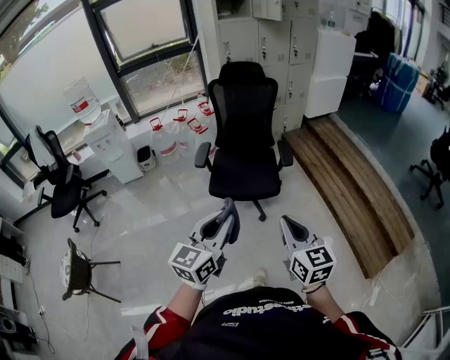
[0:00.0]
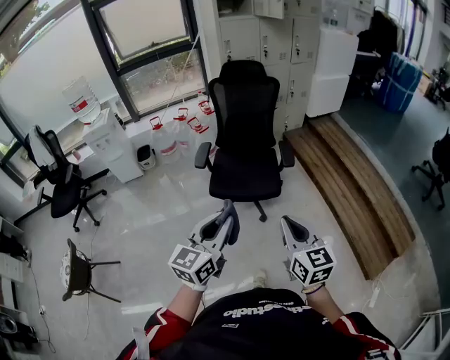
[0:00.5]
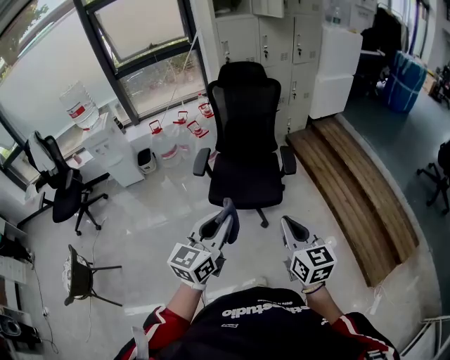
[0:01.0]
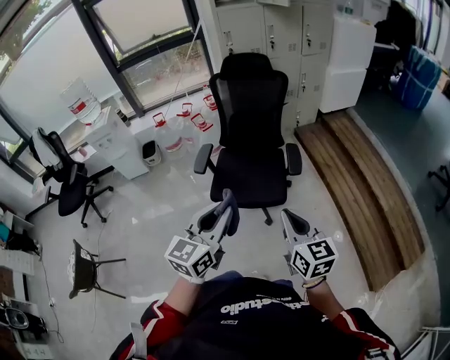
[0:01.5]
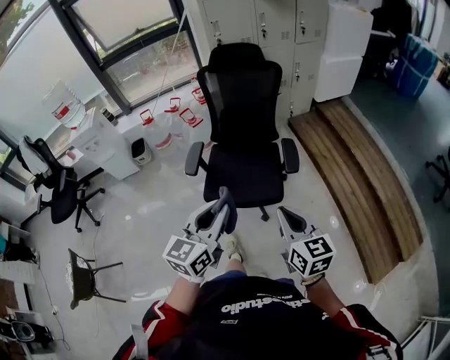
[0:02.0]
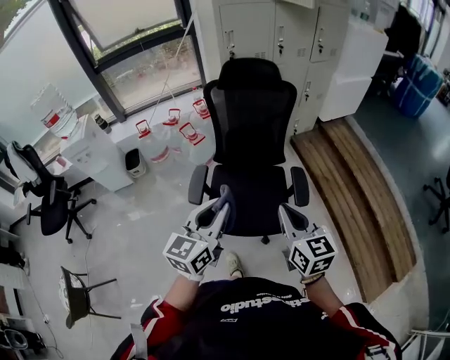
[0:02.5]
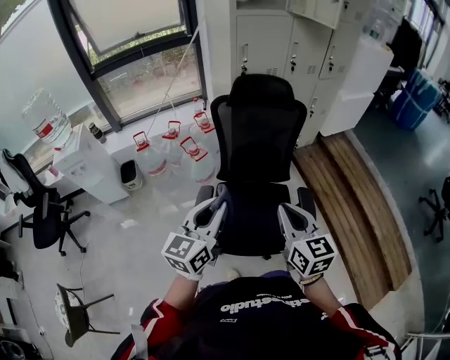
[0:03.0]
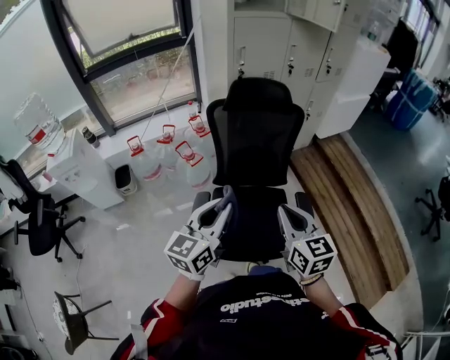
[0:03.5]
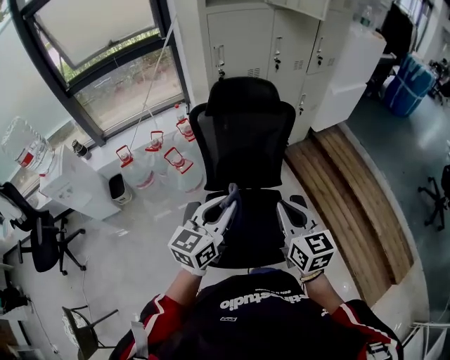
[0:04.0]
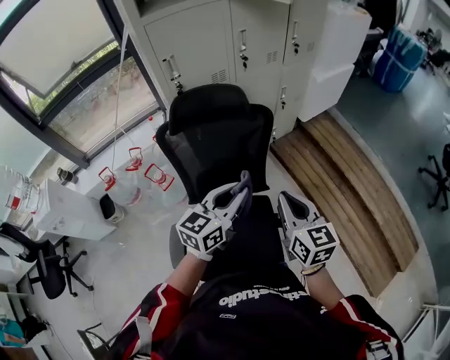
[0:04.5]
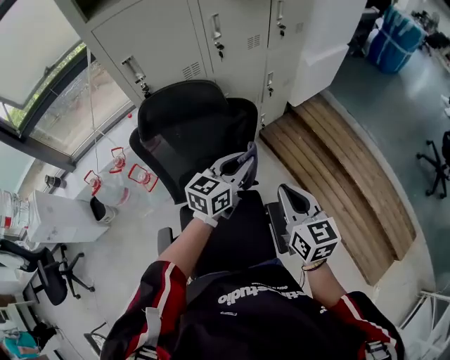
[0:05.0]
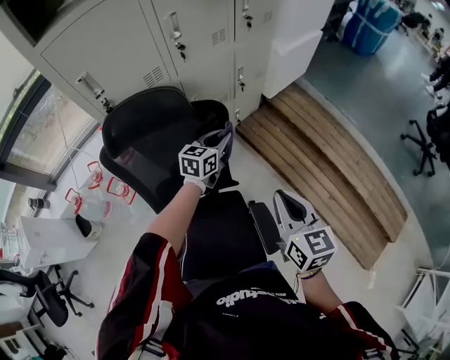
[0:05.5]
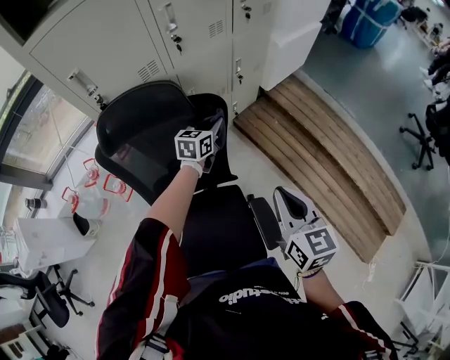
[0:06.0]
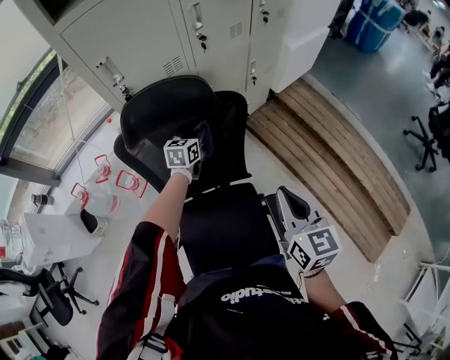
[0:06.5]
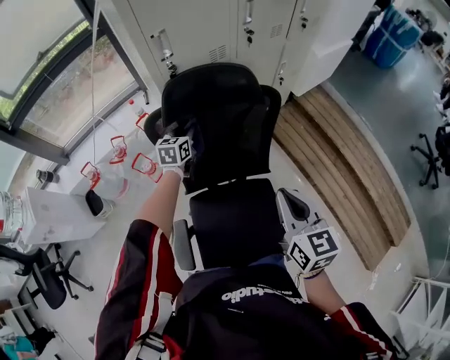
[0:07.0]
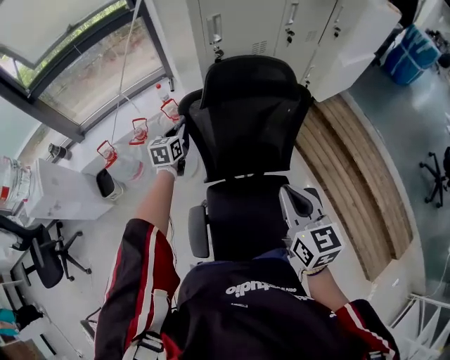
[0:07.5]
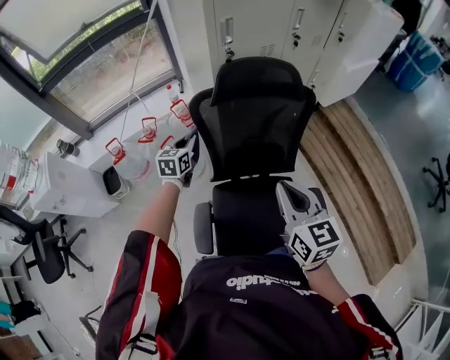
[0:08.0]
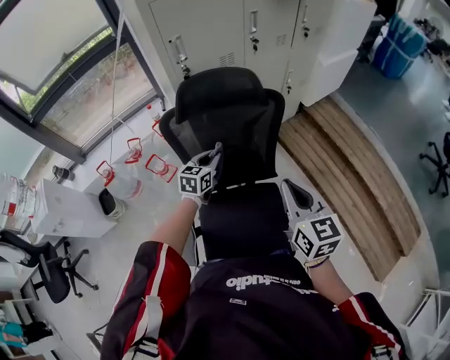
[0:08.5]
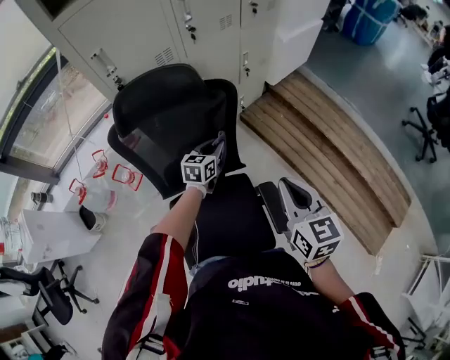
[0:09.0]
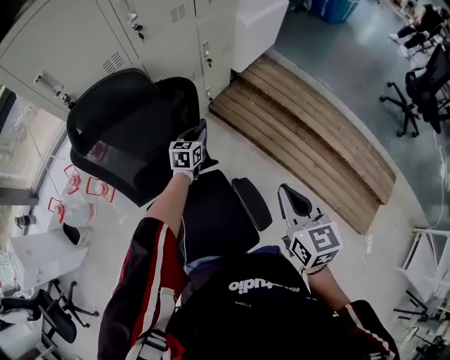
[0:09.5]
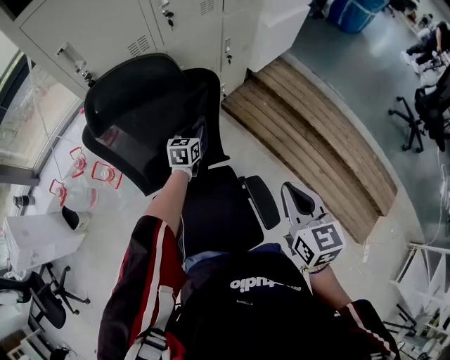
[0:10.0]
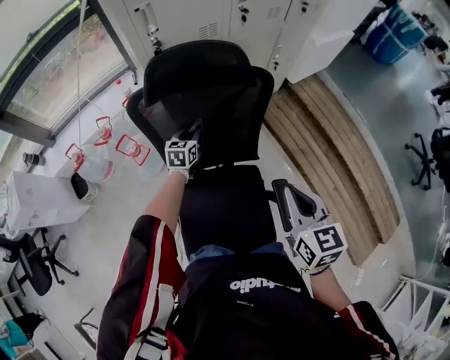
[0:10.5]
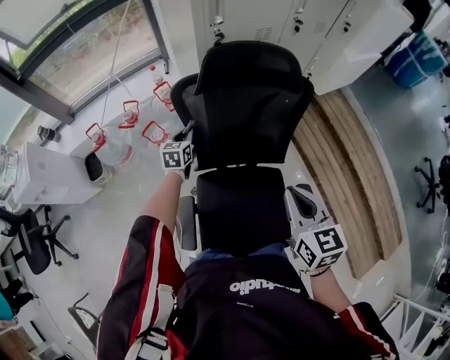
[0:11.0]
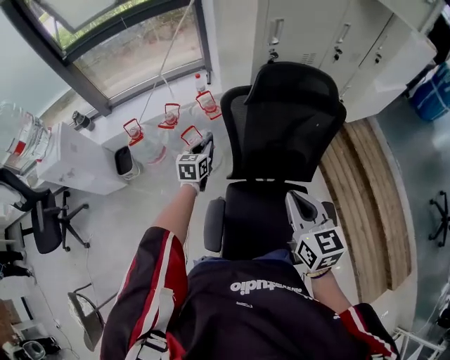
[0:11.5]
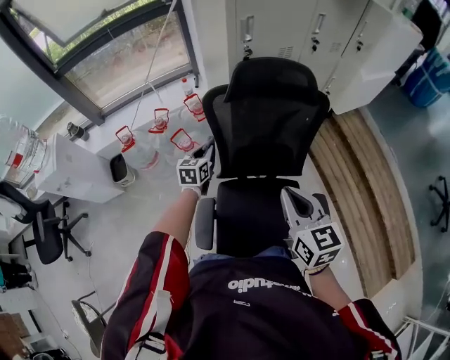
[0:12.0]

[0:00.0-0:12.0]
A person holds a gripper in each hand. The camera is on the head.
0.0 to 2.0 s: The two grippers go some 25 cm forward.
2.0 to 4.0 s: The two grippers travel together, forward, some 50 cm.
4.0 to 6.0 s: The right gripper travels forward and to the right by approximately 35 cm; the left gripper goes roughly 60 cm forward, and rotates some 20 degrees.
6.0 to 8.0 s: The left gripper heads to the left and backward, covering about 50 cm, and rotates about 20 degrees; the right gripper goes some 30 cm to the left.
8.0 to 10.0 s: The left gripper travels to the right and forward by roughly 40 cm. Meanwhile the right gripper is displaced to the right by roughly 30 cm, and turns by approximately 20 degrees.
10.0 to 12.0 s: The left gripper ends up some 40 cm from where it was, and rotates about 20 degrees. The right gripper changes place by roughly 35 cm, and changes its angle by approximately 20 degrees.

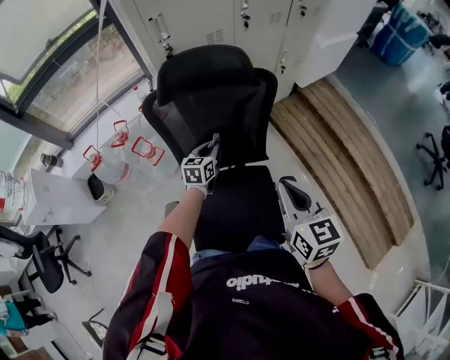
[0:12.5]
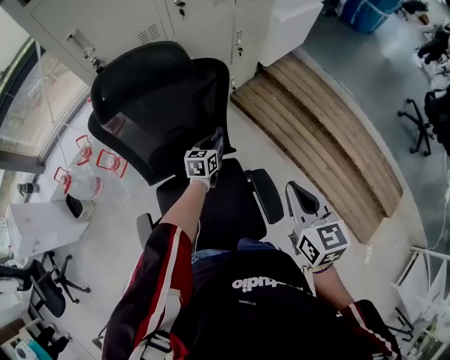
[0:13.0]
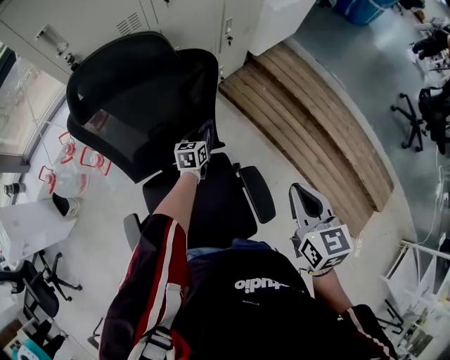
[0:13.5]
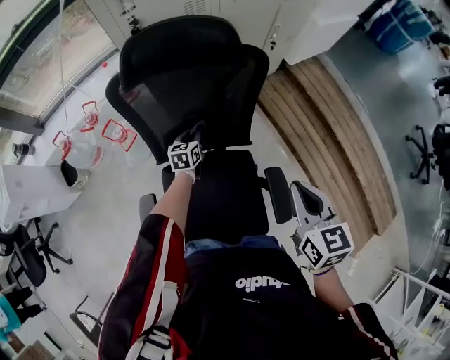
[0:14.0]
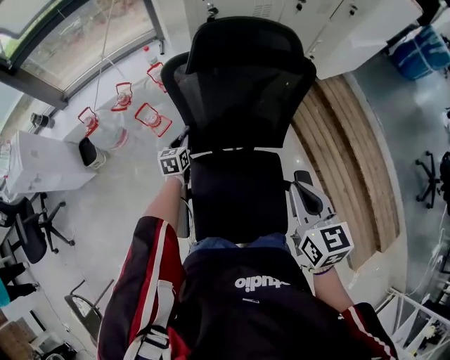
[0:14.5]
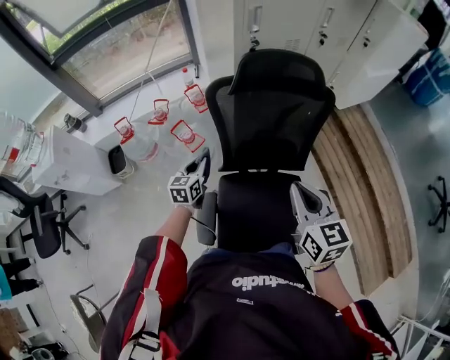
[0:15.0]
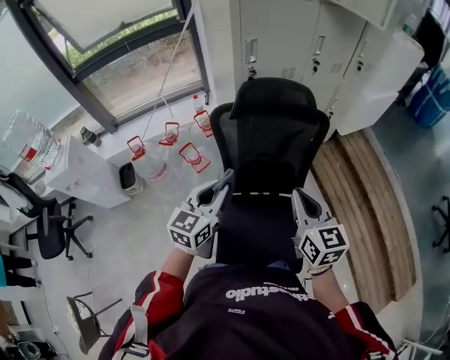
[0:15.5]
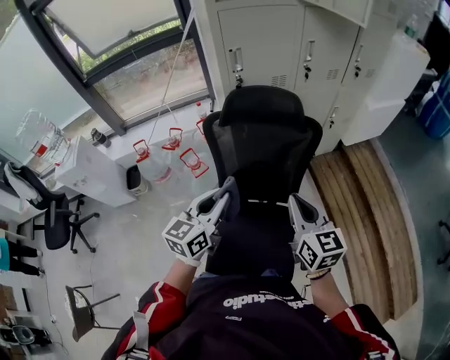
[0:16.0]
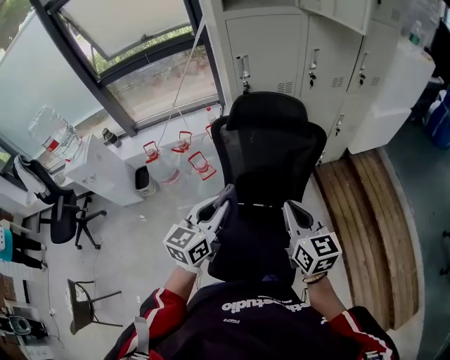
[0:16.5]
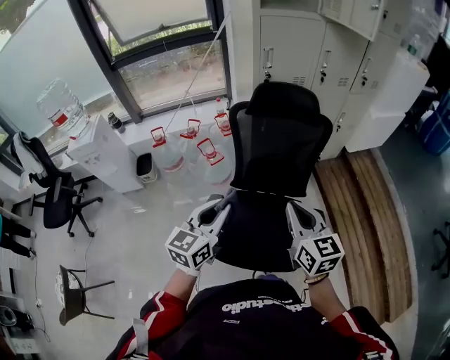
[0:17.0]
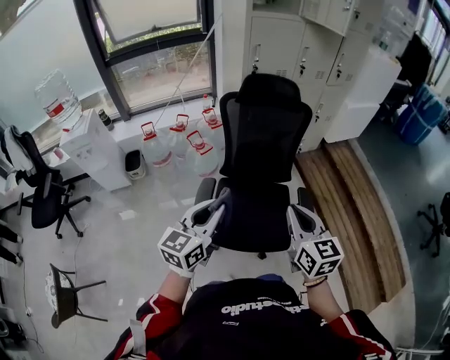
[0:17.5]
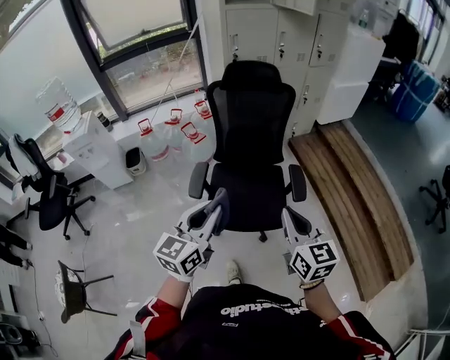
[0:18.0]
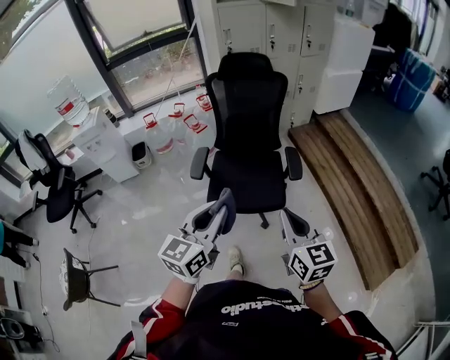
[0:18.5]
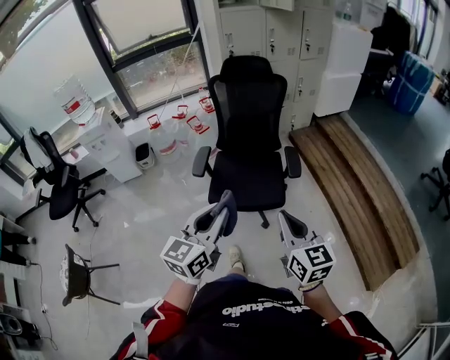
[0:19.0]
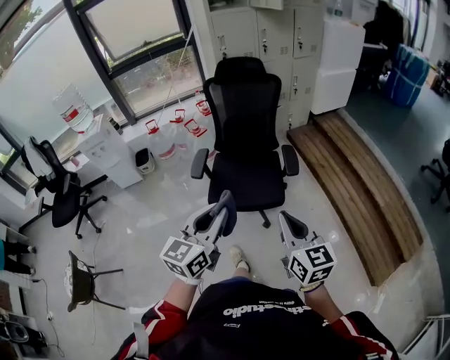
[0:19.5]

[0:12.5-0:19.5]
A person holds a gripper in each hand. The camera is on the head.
12.5 to 14.5 s: The left gripper shifts about 25 cm to the left and downward, while the right gripper reaches approximately 20 cm to the right, then returns.
14.5 to 16.0 s: The left gripper travels upward, backward and to the right by some 50 cm, and rotates approximately 30 degrees, while the right gripper goes some 10 cm upward, and moves about 10 cm to the left and comes back.
16.0 to 17.5 s: The grippers both shift backward by about 35 cm.
17.5 to 19.5 s: The left gripper heads backward and to the right, covering about 40 cm. The right gripper heads backward, covering approximately 35 cm.

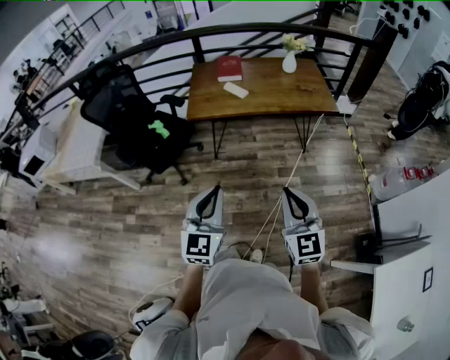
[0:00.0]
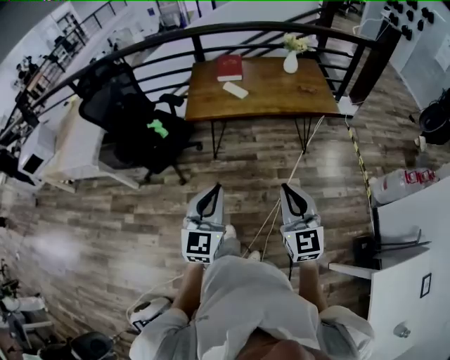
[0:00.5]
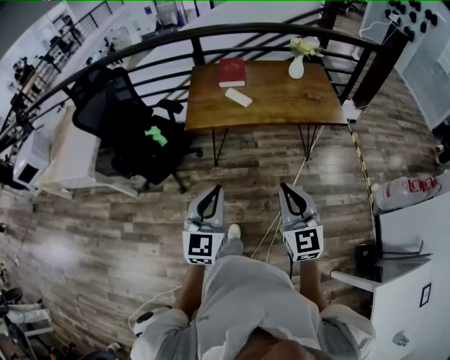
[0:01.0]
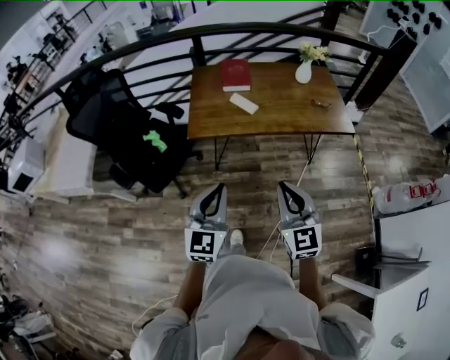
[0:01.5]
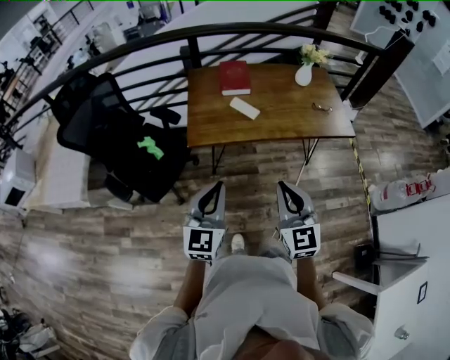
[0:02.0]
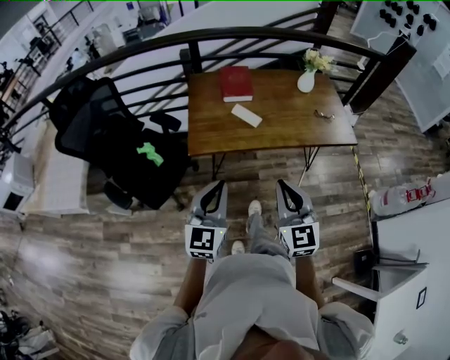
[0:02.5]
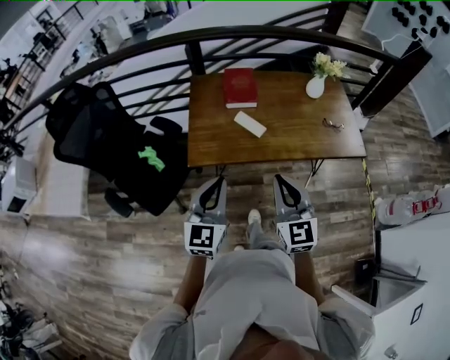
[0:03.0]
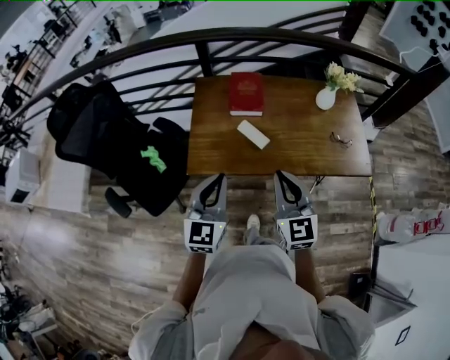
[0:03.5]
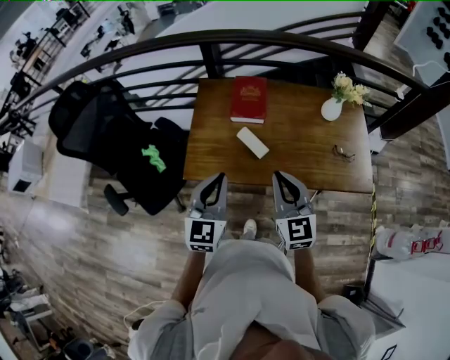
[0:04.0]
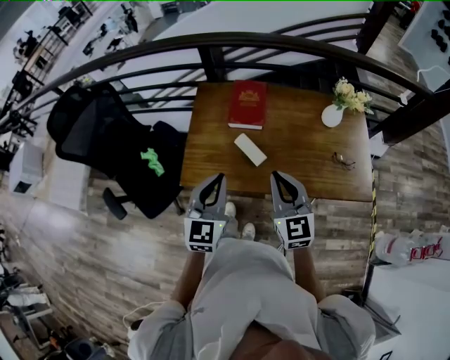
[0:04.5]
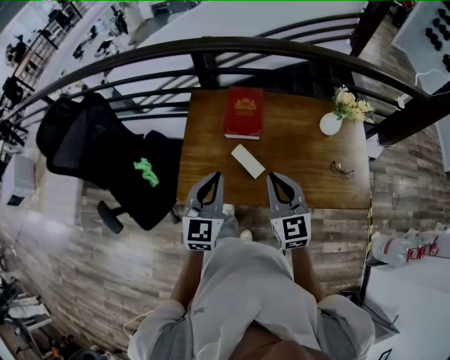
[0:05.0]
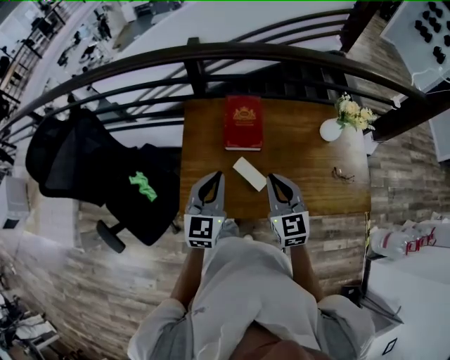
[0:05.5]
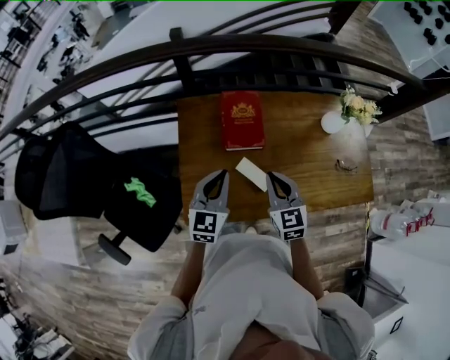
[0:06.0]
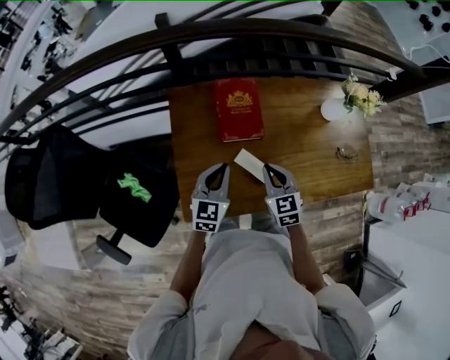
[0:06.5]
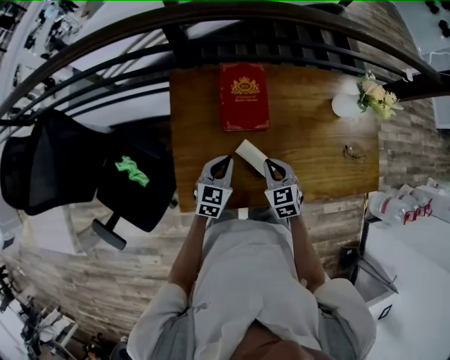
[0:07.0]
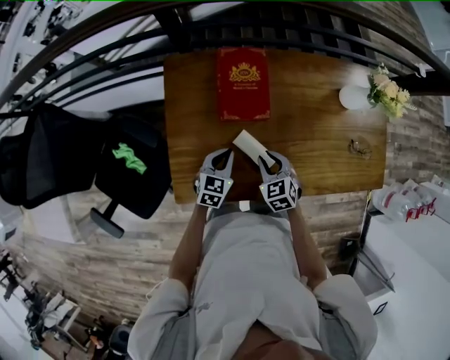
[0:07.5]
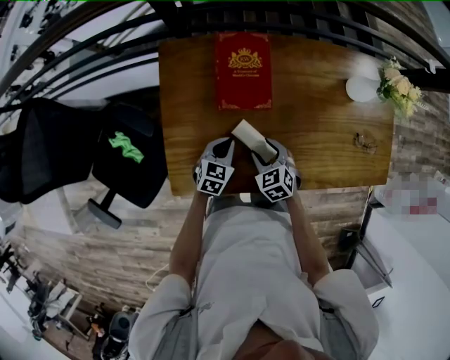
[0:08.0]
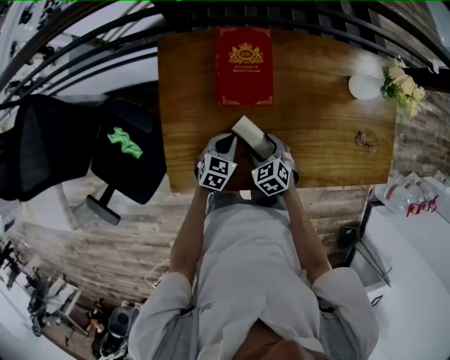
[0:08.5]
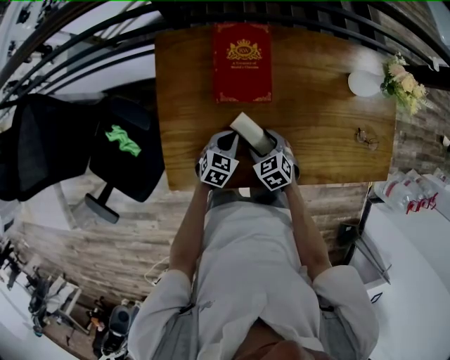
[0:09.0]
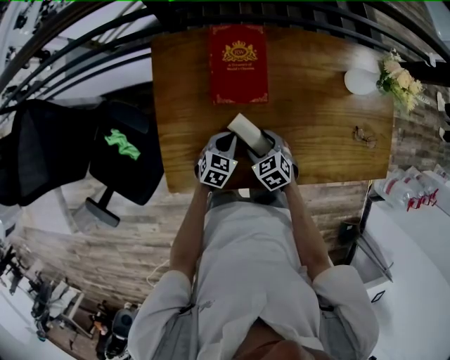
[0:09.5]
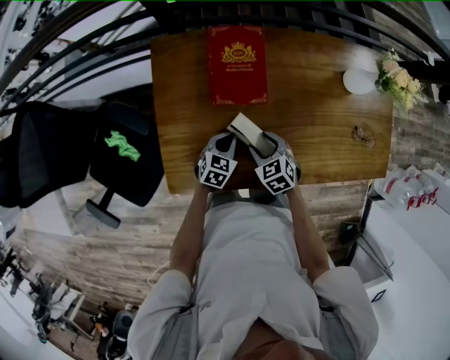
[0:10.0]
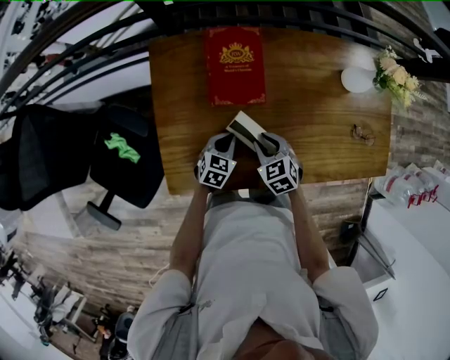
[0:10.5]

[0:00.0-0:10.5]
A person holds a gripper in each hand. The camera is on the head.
0.0 to 2.0 s: The left gripper is displaced forward by approximately 30 cm. The right gripper heads forward and to the left, covering approximately 30 cm.
2.0 to 4.0 s: Both grippers move forward, roughly 30 cm.
4.0 to 6.5 s: The grippers both shift forward and downward by approximately 30 cm. The right gripper turns by about 30 degrees; the left gripper changes its angle by roughly 20 degrees.
6.5 to 8.5 s: Both grippers move downward, some 20 cm. The right gripper swivels approximately 30 degrees, and opens its fingers, while the left gripper turns by some 20 degrees.
8.5 to 10.5 s: The right gripper closes its fingers.
